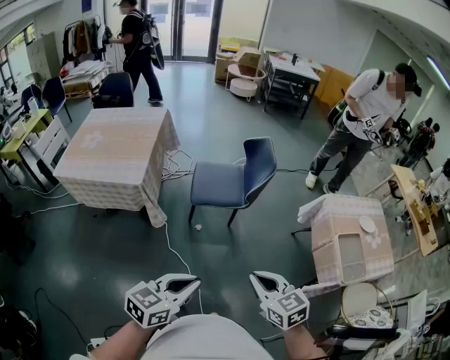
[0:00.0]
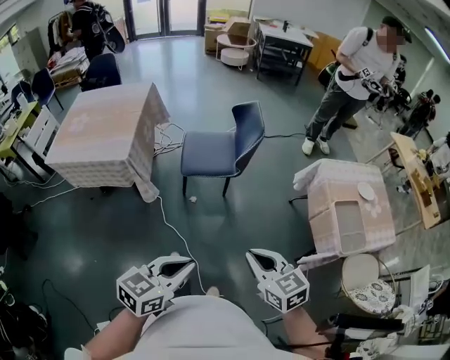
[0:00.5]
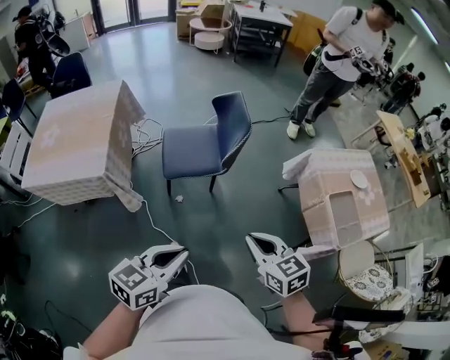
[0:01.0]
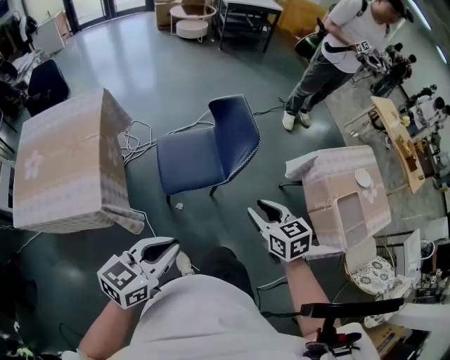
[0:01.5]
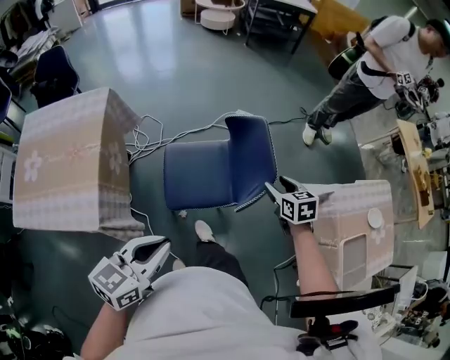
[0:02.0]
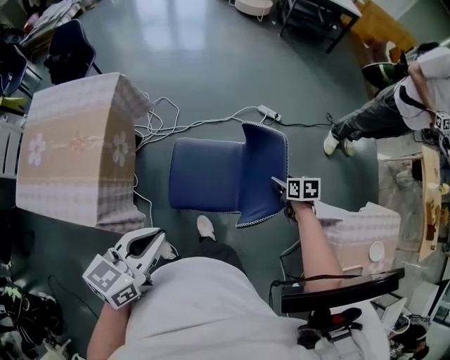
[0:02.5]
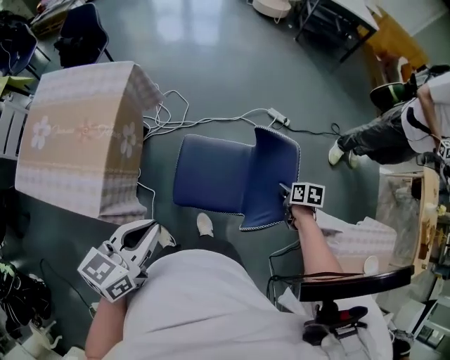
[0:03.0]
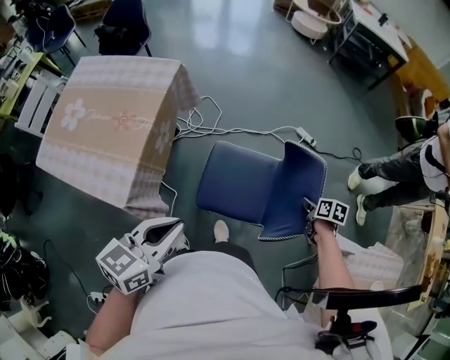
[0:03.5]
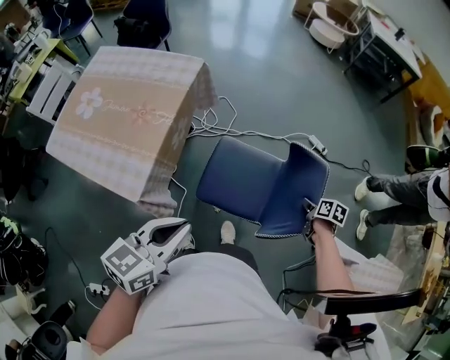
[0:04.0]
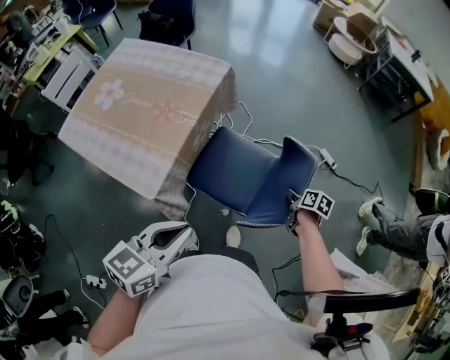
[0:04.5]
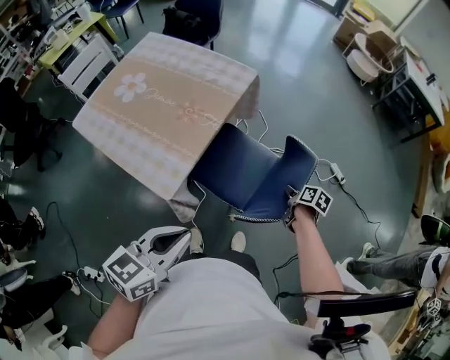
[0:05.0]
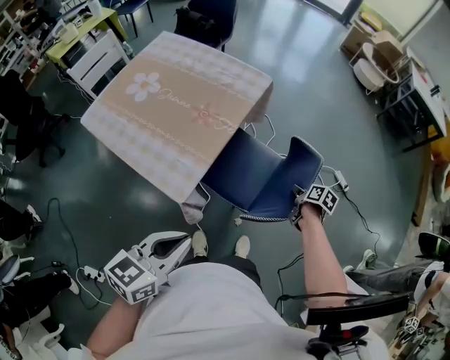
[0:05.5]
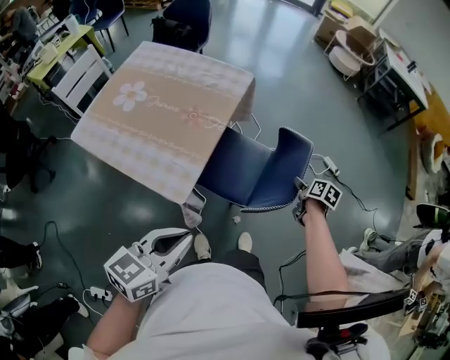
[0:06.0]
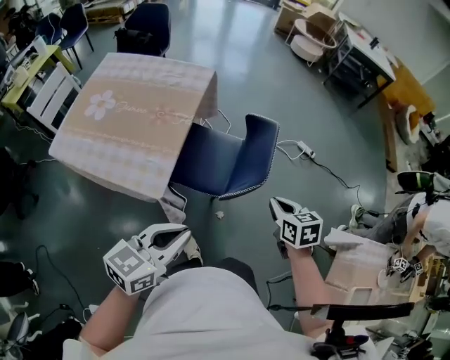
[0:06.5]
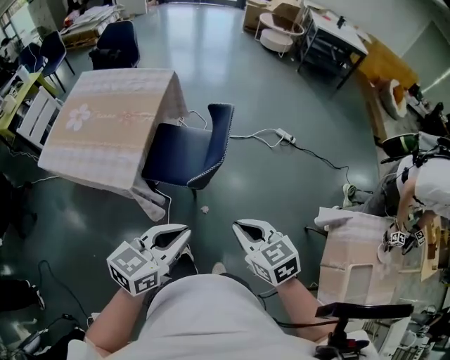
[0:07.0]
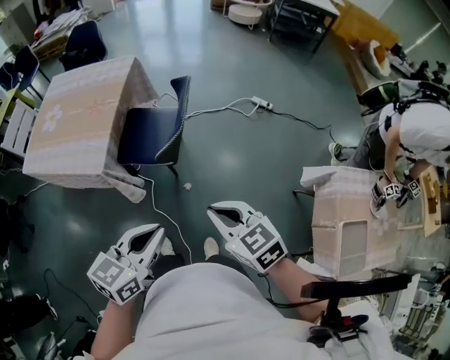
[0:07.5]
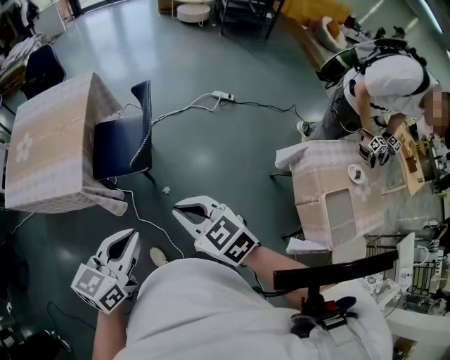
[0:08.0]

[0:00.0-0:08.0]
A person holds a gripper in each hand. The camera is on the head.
0:00.0 to 0:02.0: The pair of grippers is taken forward, roughly 50 cm. The right gripper swivels approximately 20 degrees, and opens up.
0:02.0 to 0:04.0: The left gripper ends up roughly 15 cm from where it was, and turns by some 20 degrees; the right gripper shifts by about 20 cm, turns by about 30 degrees, and closes its fingers.
0:04.0 to 0:06.0: The two grippers go about 20 cm to the left. The right gripper opens its fingers.
0:06.0 to 0:08.0: The left gripper travels to the right and backward by roughly 30 cm. The right gripper is displaced backward and upward by about 50 cm, rolls counterclockwise, seen from behind, by some 50 degrees, and closes.

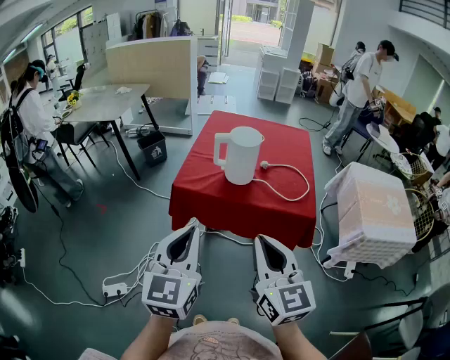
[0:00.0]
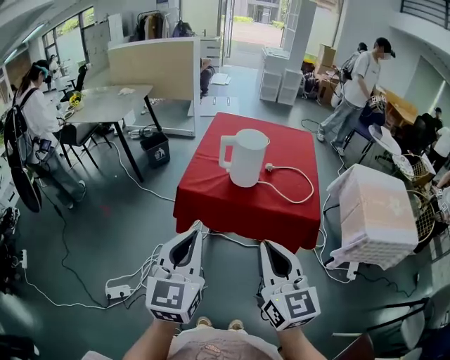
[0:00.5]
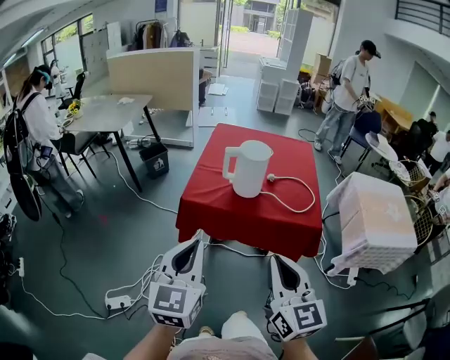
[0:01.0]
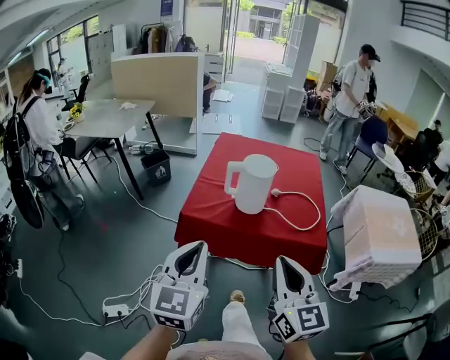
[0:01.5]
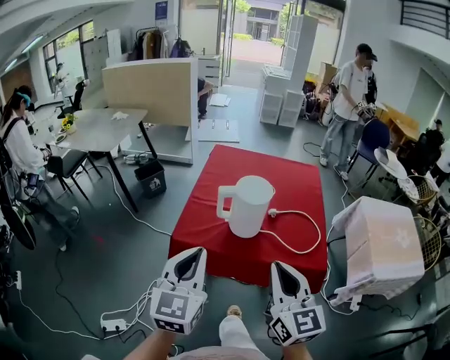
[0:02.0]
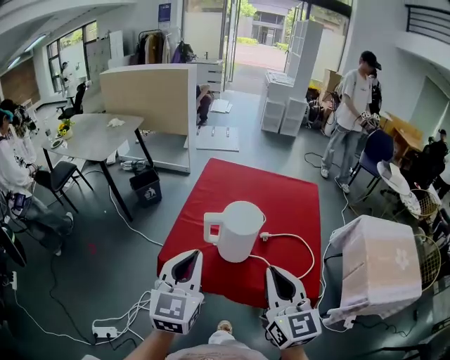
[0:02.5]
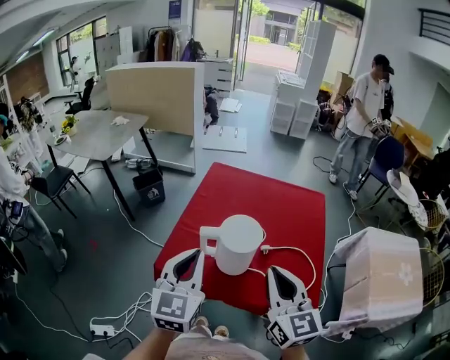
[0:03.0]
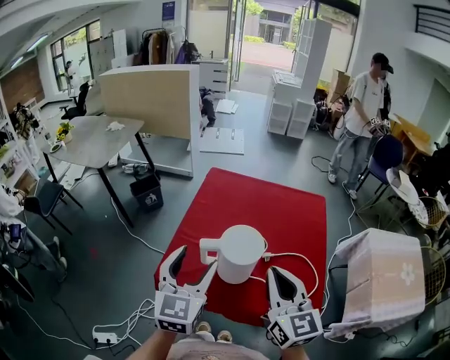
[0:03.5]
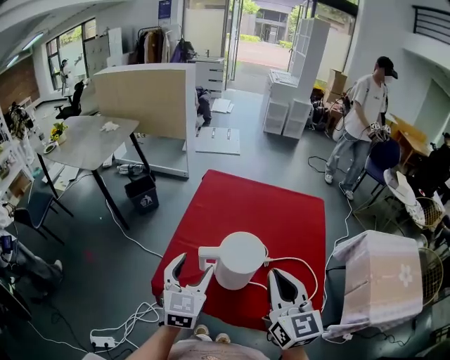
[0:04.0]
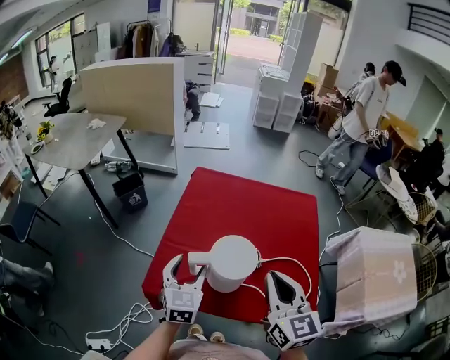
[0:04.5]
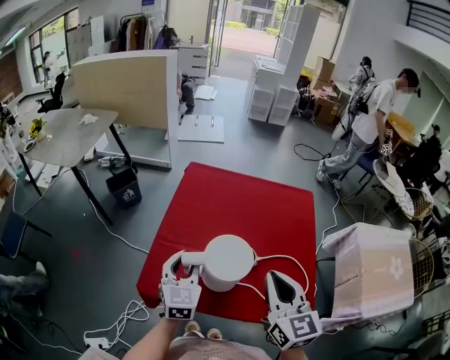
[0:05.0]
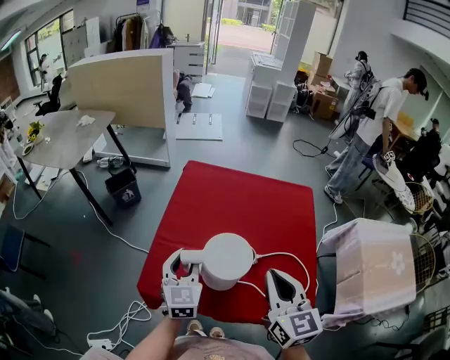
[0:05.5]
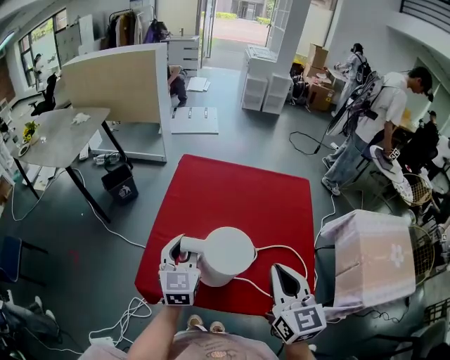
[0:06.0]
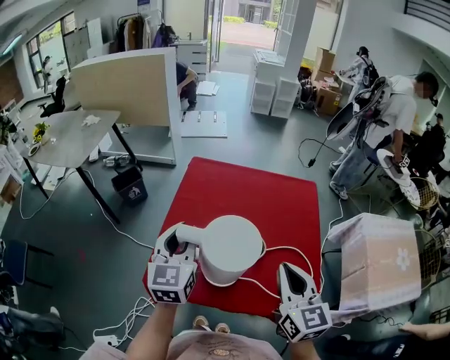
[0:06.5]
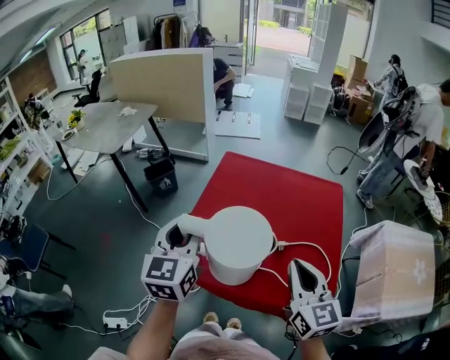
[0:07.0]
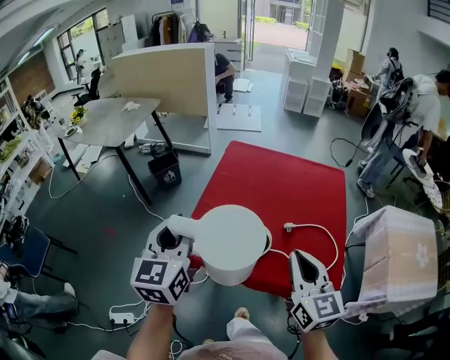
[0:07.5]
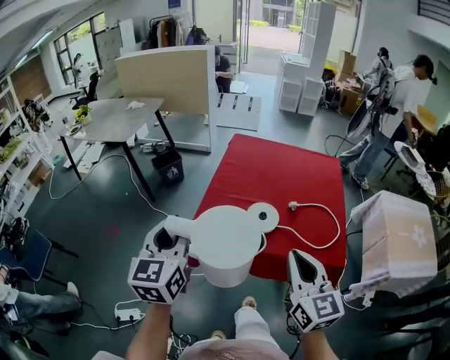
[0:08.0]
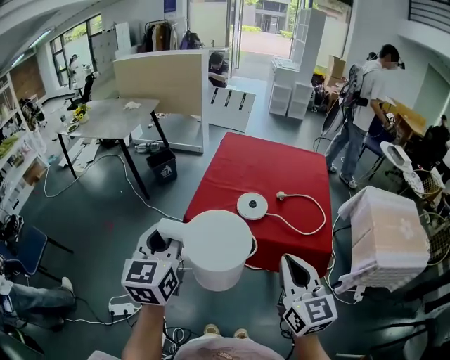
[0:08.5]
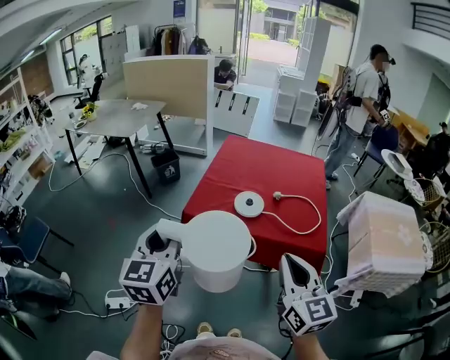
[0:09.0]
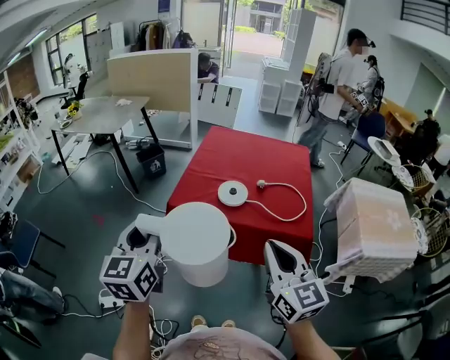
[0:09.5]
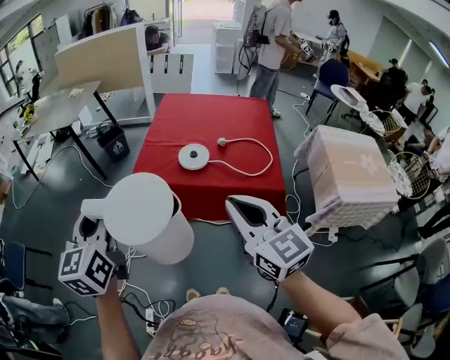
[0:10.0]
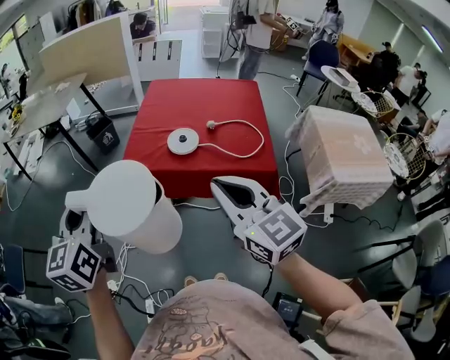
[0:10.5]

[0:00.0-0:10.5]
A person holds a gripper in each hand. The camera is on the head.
0:00.0 to 0:02.0: Both grippers move forward, roughly 15 cm.
0:02.0 to 0:04.0: Both grippers travel together forward, roughly 20 cm. The left gripper opens up.
0:04.0 to 0:06.5: The right gripper goes about 5 cm to the right. Meanwhile the left gripper moves forward, about 10 cm, and closes its fingers.
0:06.5 to 0:08.5: Both grippers travel together backward and to the left, approximately 35 cm.
0:08.5 to 0:10.5: The right gripper shifts by roughly 5 cm. Meanwhile the left gripper travels backward by about 10 cm.

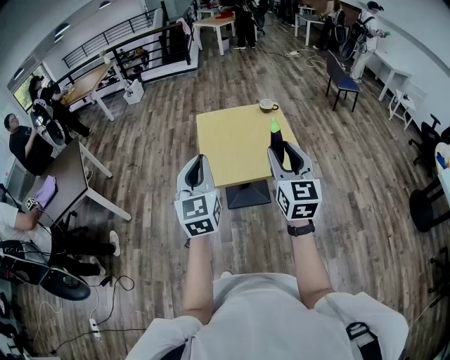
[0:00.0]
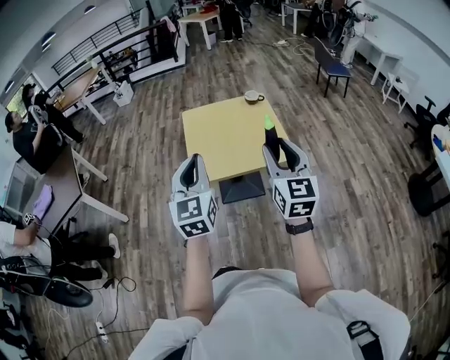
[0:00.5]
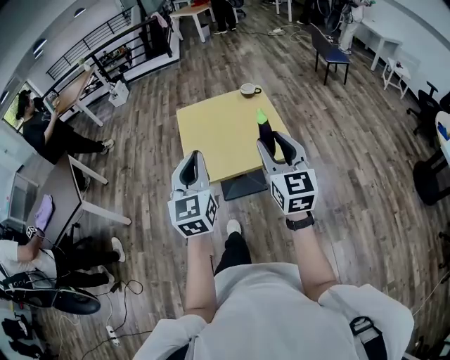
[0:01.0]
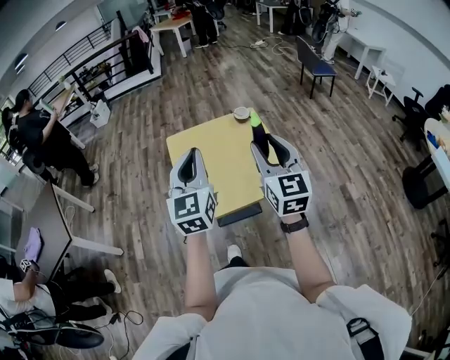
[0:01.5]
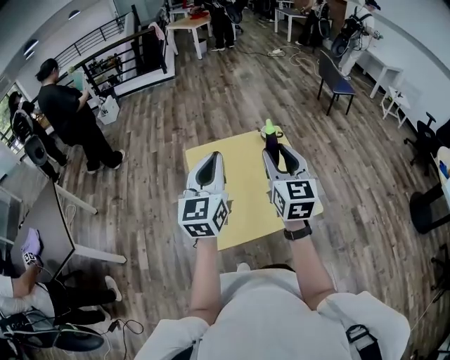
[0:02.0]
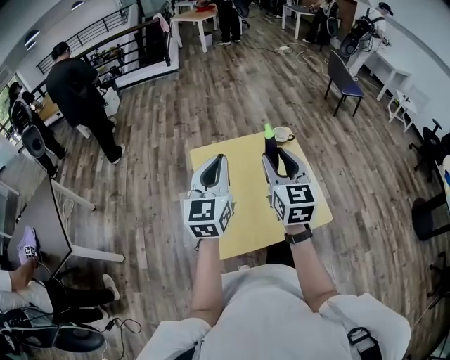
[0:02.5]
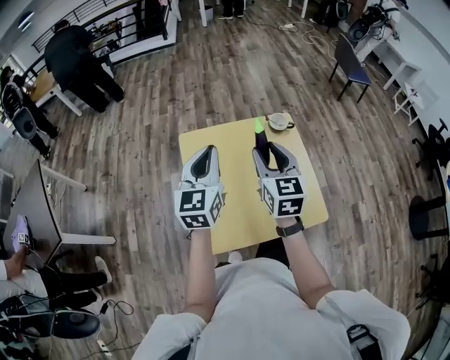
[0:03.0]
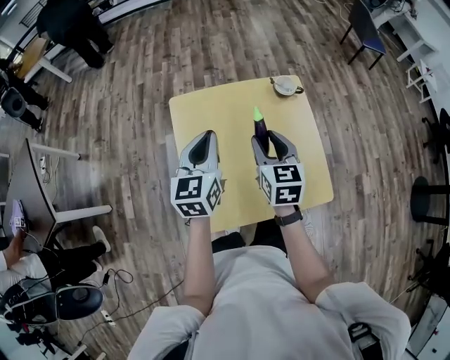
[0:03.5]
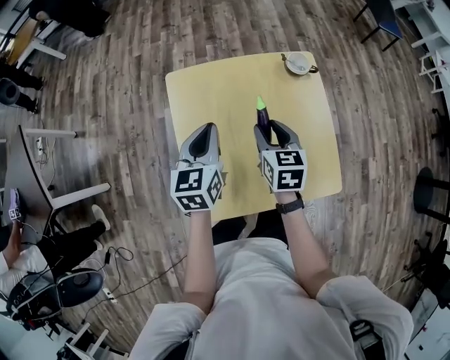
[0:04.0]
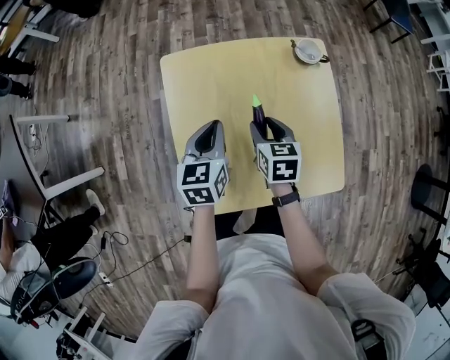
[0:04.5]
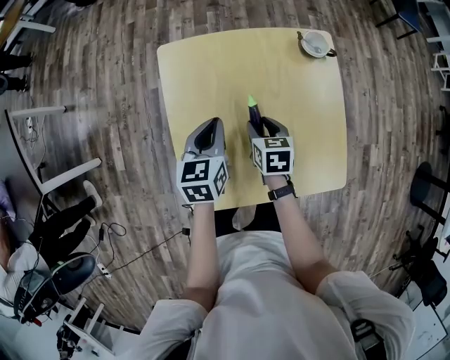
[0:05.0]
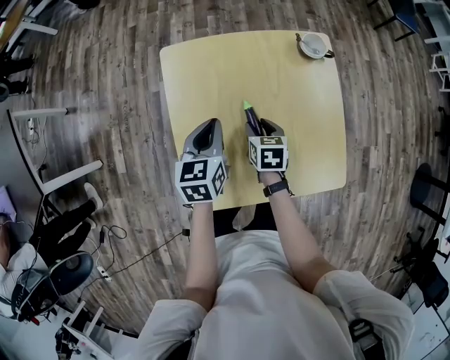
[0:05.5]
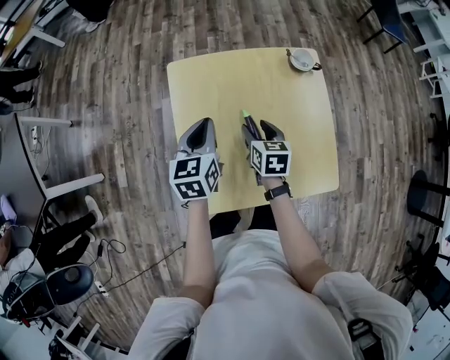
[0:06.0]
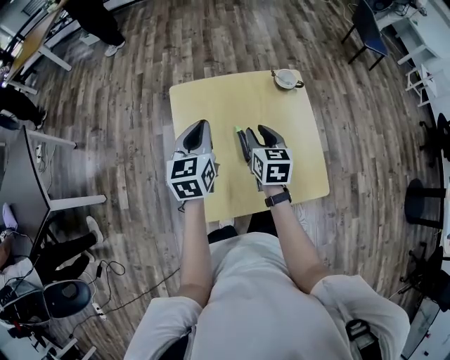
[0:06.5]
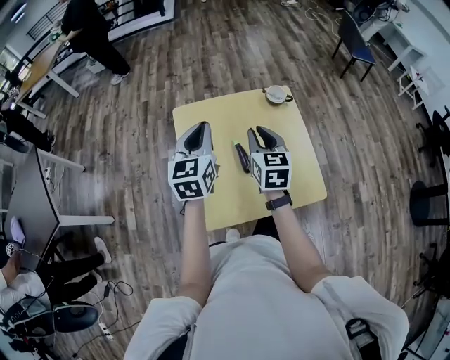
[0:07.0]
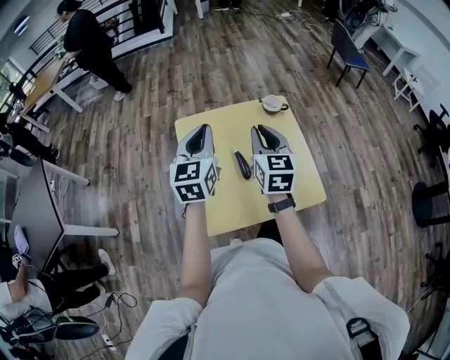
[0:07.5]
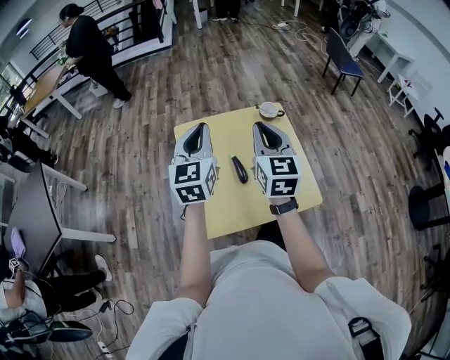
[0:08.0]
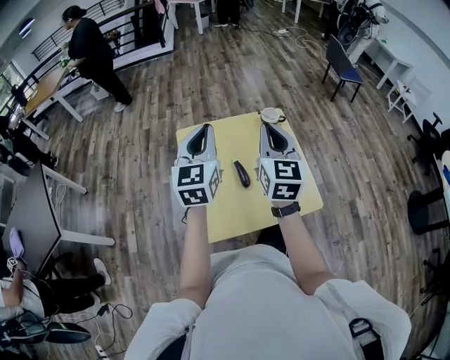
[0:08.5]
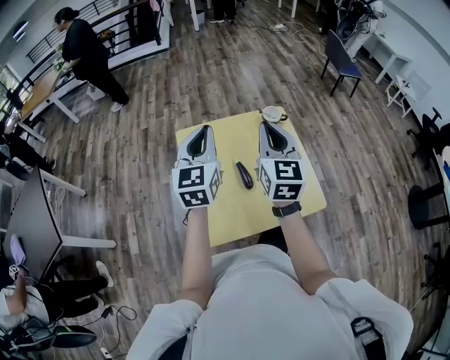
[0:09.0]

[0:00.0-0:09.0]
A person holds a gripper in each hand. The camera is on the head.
0:00.0 to 0:02.0: The two grippers go roughly 30 cm forward. The left gripper rotates roughly 20 degrees.
0:02.0 to 0:04.5: The two grippers go some 40 cm downward and forward. The left gripper angles its fingers downward, by roughly 30 degrees, while the right gripper tilts its fingers roughly 40 degrees downward.
0:04.5 to 0:07.0: The grippers both shift upward by some 15 cm. The left gripper swivels some 20 degrees; the right gripper rotates about 30 degrees, and closes up.
0:07.0 to 0:09.0: The right gripper shifts approximately 15 cm upward. Meanwhile the left gripper shifts about 5 cm upward.
